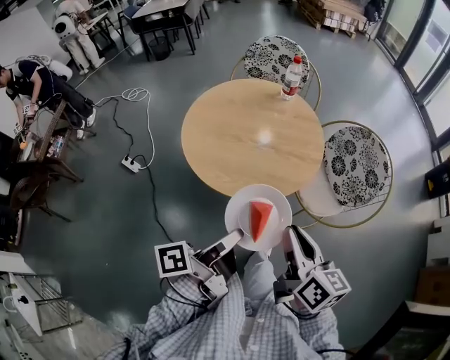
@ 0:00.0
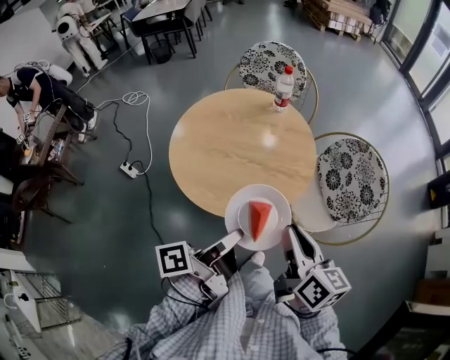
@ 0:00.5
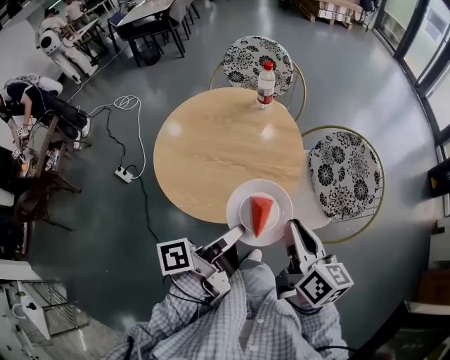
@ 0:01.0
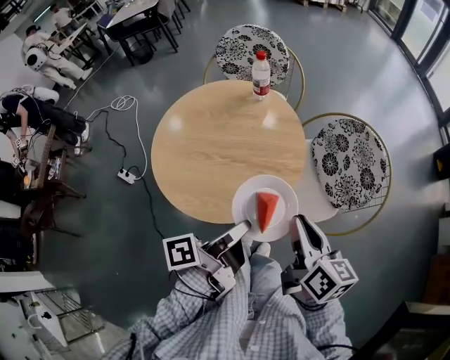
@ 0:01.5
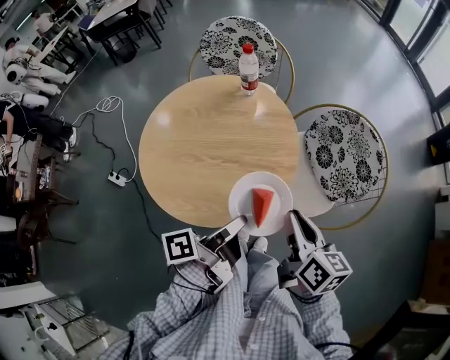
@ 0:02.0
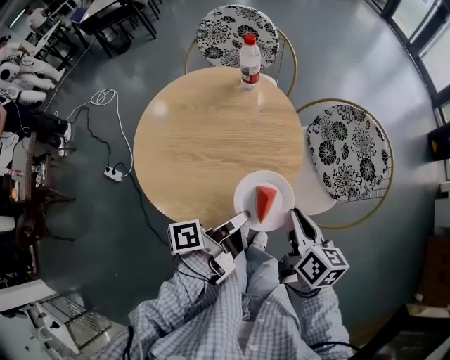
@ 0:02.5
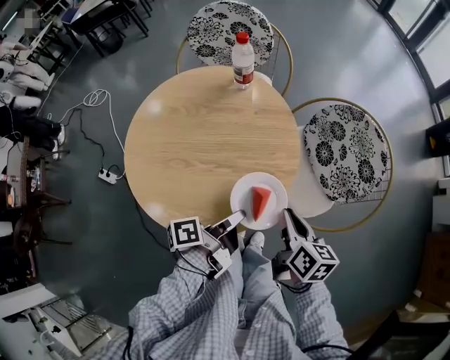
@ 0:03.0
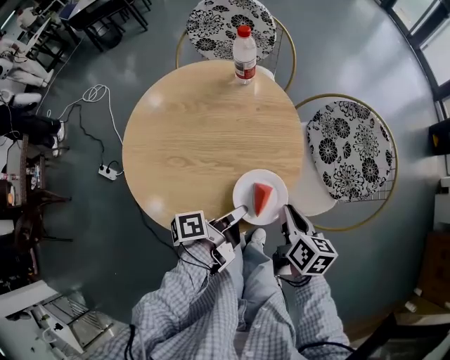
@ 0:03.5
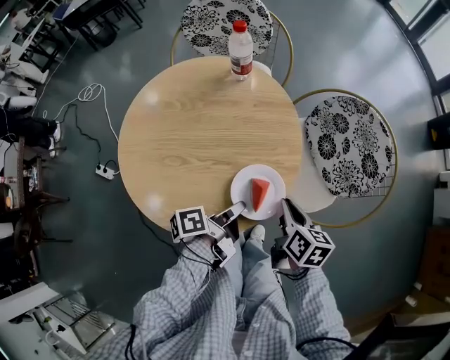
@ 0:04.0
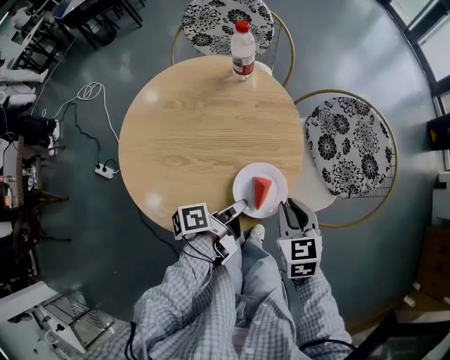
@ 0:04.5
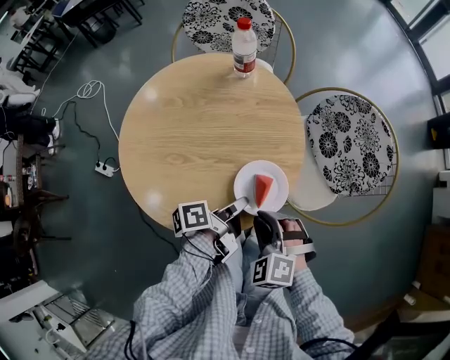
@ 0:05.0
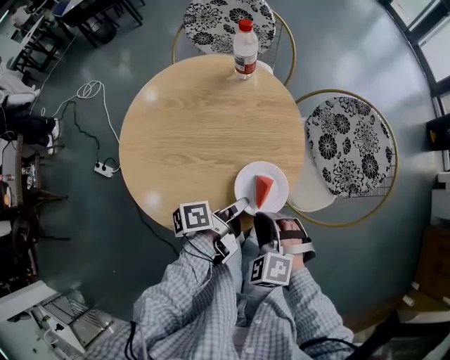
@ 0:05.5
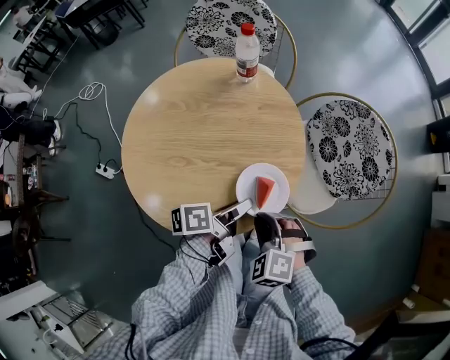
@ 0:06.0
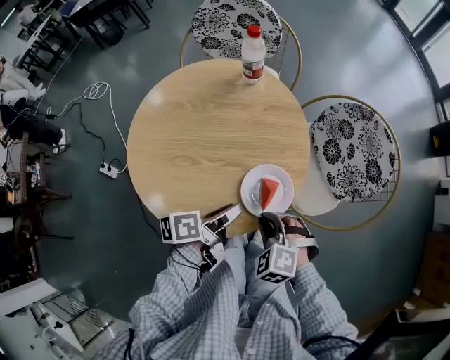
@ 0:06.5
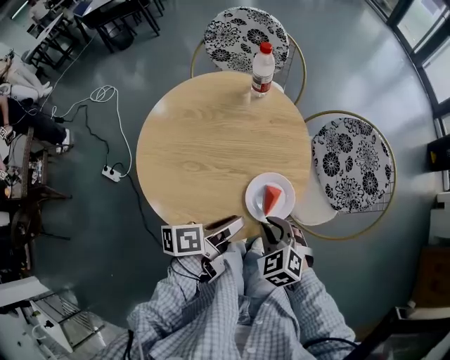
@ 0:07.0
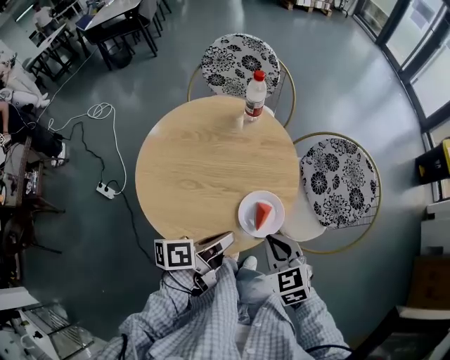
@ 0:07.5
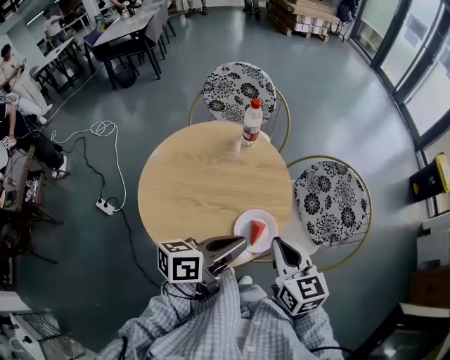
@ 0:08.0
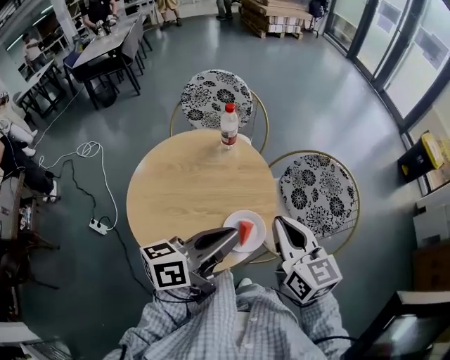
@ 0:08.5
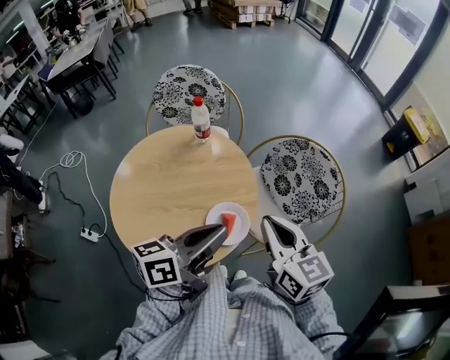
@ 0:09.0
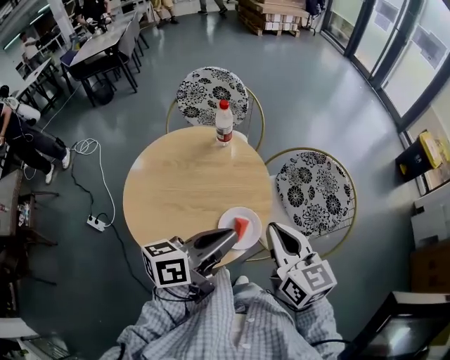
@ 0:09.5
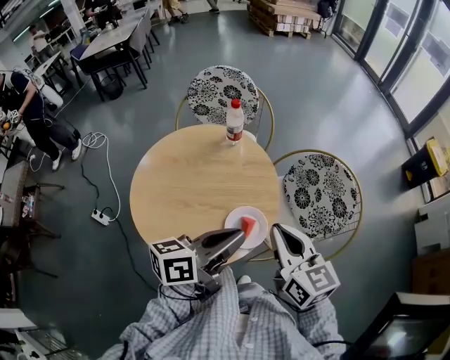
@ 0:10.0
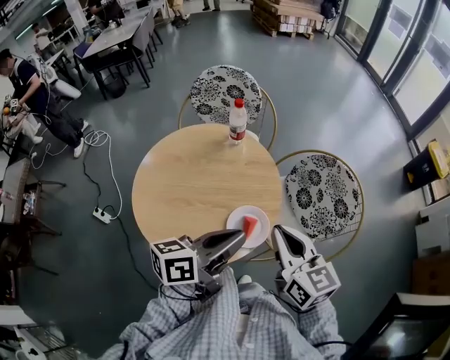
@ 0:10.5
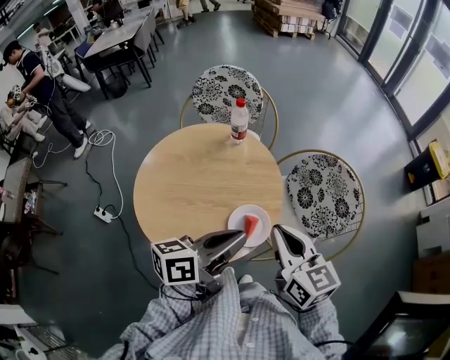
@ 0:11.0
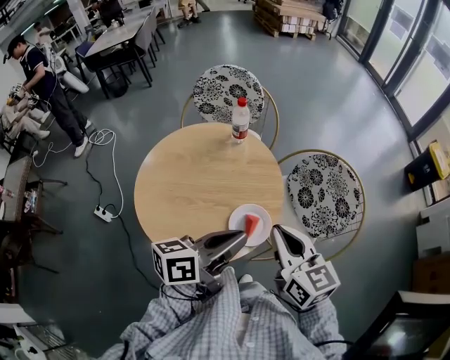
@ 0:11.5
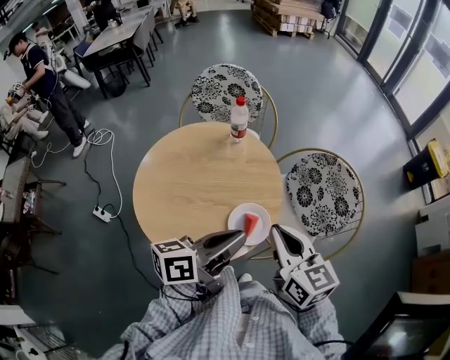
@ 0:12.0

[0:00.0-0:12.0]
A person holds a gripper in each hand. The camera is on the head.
0:00.0 to 0:02.0: The right gripper ends up approximately 20 cm from where it was.
0:02.0 to 0:04.0: The right gripper shifts approximately 15 cm downward.
0:04.0 to 0:06.0: The right gripper moves approximately 10 cm, and rotates around the line of its fingers by about 90 degrees, counterclockwise from behind.
0:06.0 to 0:08.0: The right gripper shifts some 15 cm upward, and rotates around the line of its fingers by approximately 50 degrees, clockwise from behind.
0:08.0 to 0:10.0: The right gripper is displaced upward by some 5 cm.

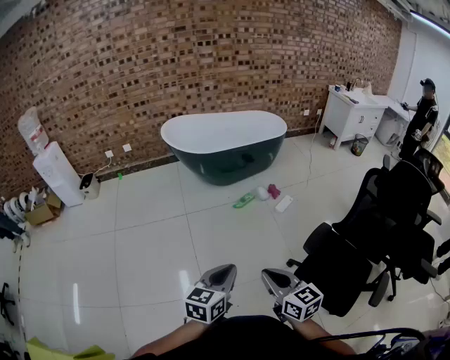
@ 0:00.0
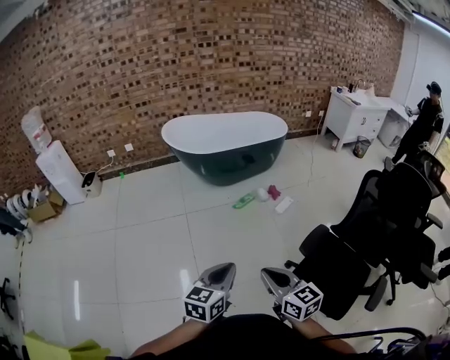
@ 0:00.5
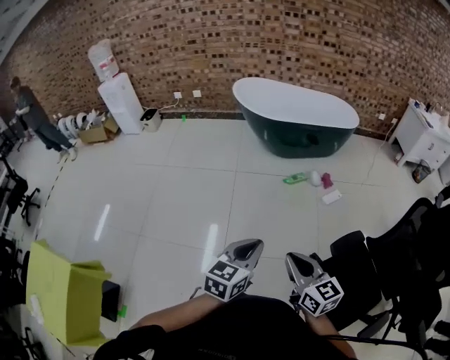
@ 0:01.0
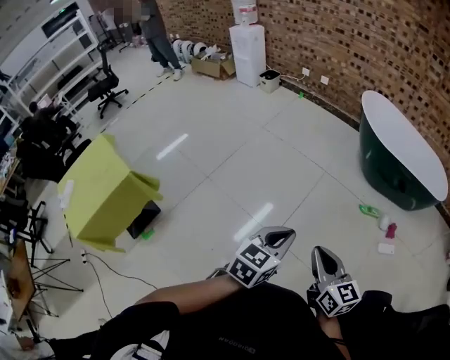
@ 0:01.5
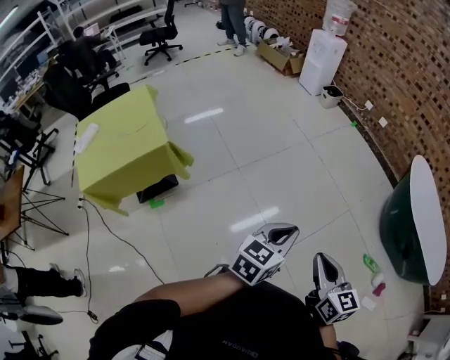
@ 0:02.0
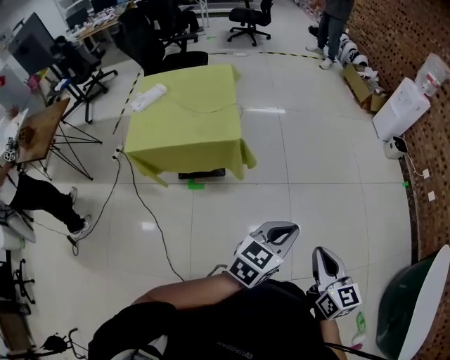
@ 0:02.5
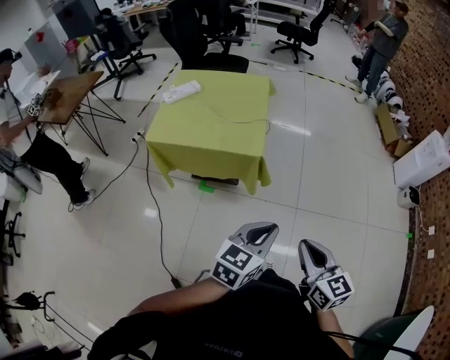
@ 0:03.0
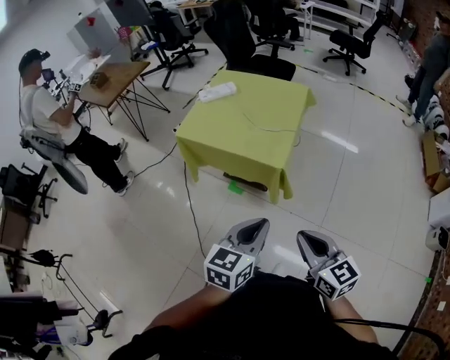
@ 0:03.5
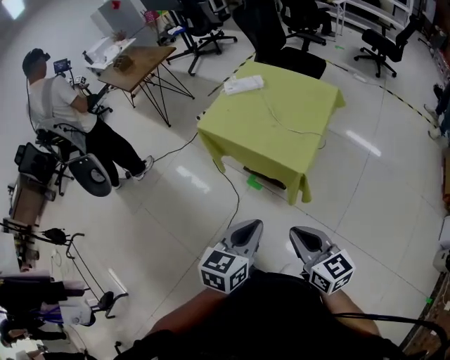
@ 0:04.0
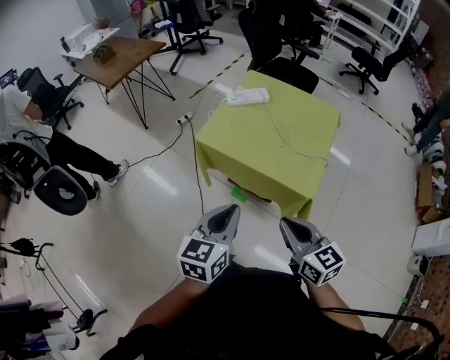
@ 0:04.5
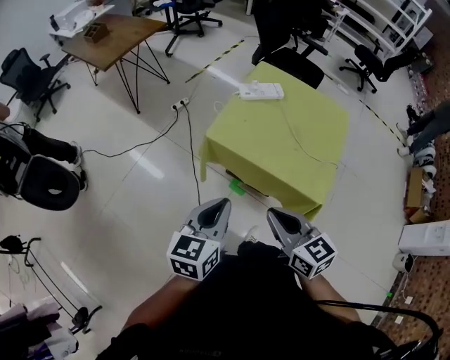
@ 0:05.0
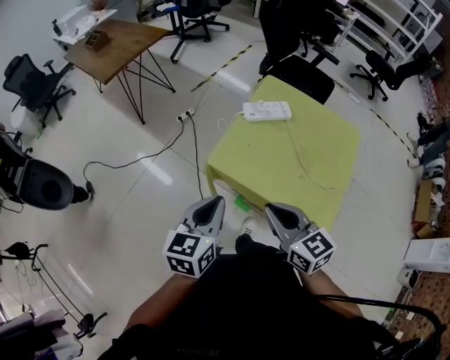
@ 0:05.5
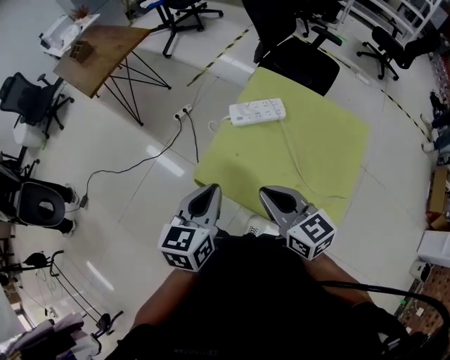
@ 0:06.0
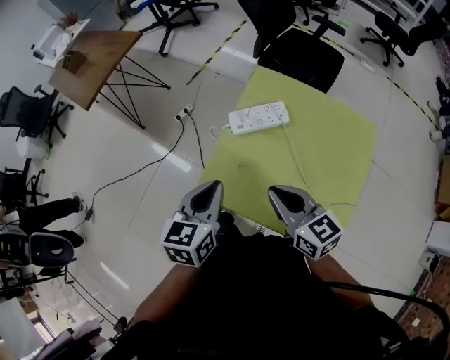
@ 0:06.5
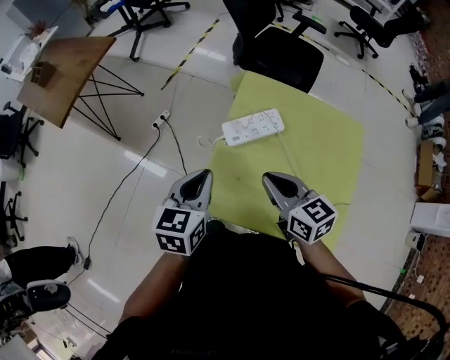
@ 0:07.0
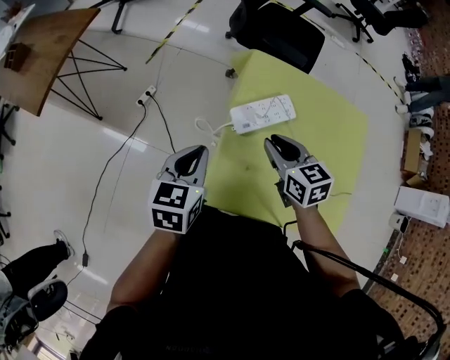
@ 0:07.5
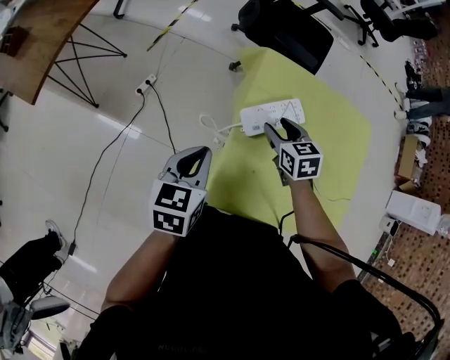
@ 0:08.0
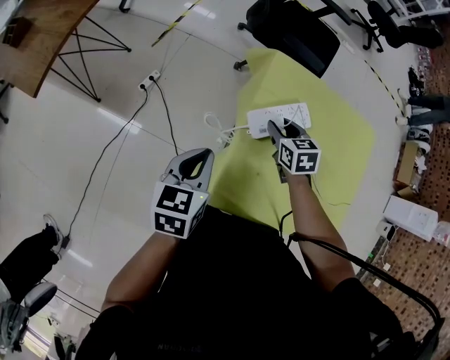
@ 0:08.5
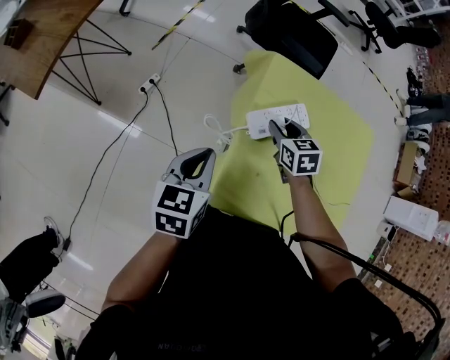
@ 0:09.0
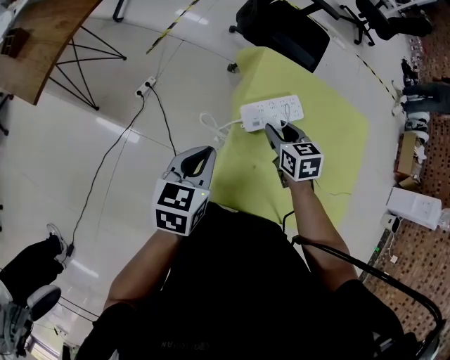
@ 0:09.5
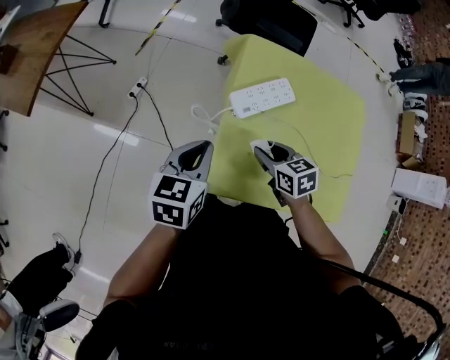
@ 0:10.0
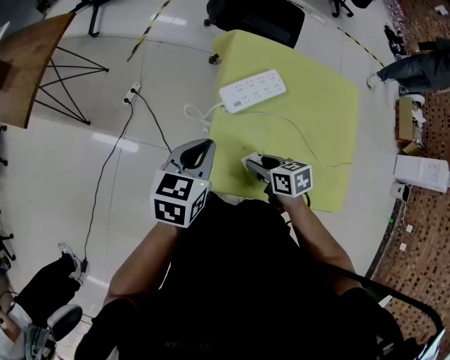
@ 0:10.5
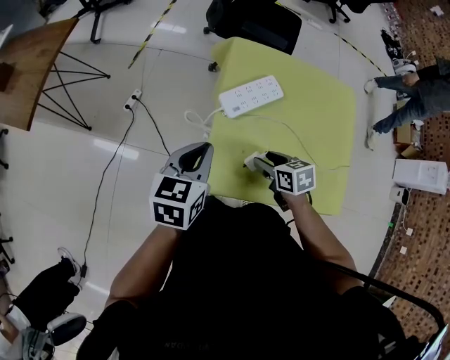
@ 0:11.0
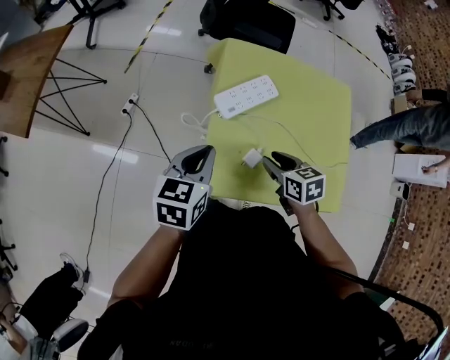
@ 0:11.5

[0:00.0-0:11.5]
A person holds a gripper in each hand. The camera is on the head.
0:00.0 to 0:02.0: The right gripper shifts by roughly 35 cm, and turns by roughly 60 degrees. Meanwhile the left gripper ends up some 35 cm from where it was, and rotates approximately 60 degrees.
0:02.0 to 0:04.0: Both grippers are carried some 50 cm. The right gripper changes its angle by some 90 degrees, while the left gripper changes its angle by about 80 degrees.
0:04.0 to 0:06.0: Both grippers are carried forward, roughly 50 cm.
0:06.0 to 0:07.5: Both grippers move forward and downward, roughly 25 cm. The right gripper turns by approximately 30 degrees. The left gripper turns by approximately 20 degrees.
0:07.5 to 0:09.5: The right gripper travels downward by about 5 cm.
0:09.5 to 0:11.5: The left gripper shifts some 5 cm to the right. Meanwhile the right gripper shifts approximately 15 cm backward and to the right.

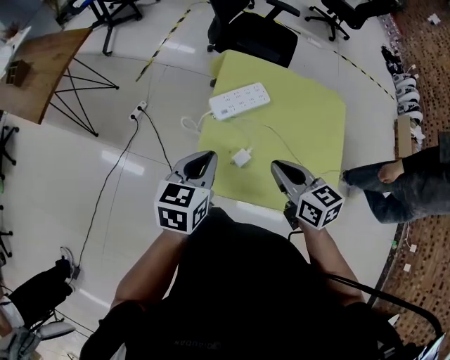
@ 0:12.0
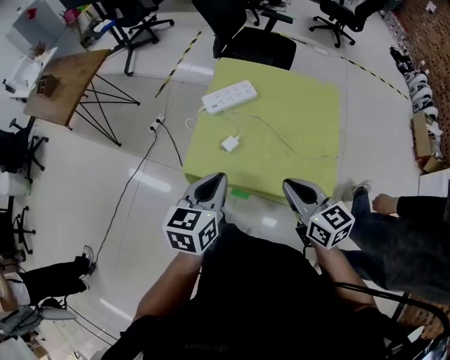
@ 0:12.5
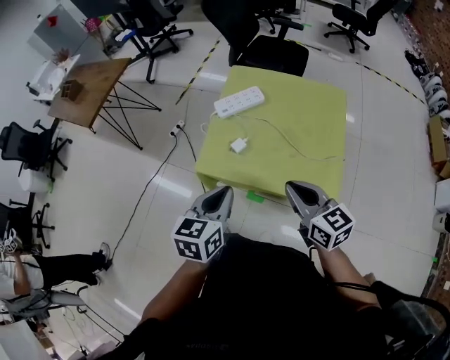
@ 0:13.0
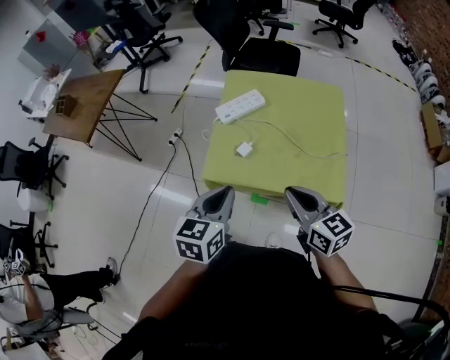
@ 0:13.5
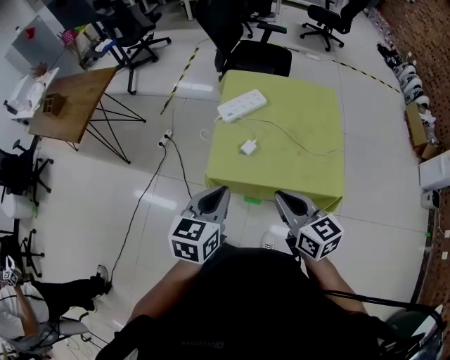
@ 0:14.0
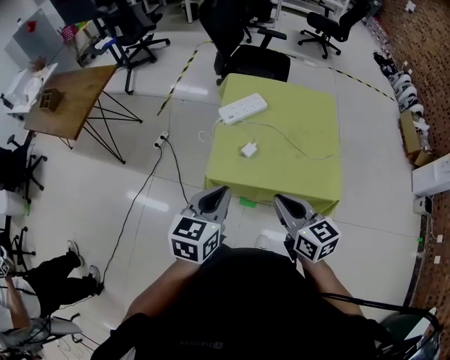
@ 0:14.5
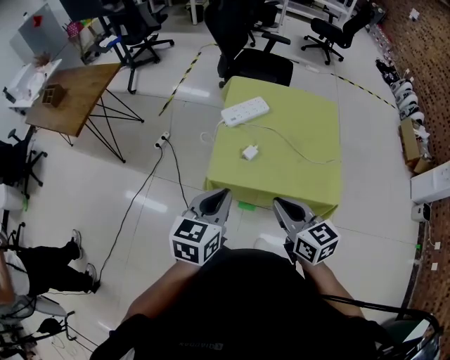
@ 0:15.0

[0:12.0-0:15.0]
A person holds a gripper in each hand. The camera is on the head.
0:12.0 to 0:13.5: Both grippers travel together backward, about 20 cm.
0:13.5 to 0:15.0: Both grippers travel together to the left, some 10 cm.
